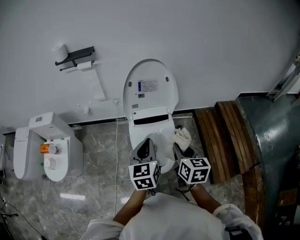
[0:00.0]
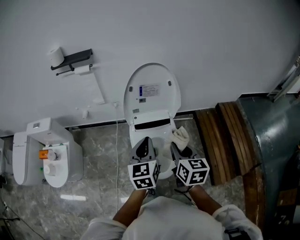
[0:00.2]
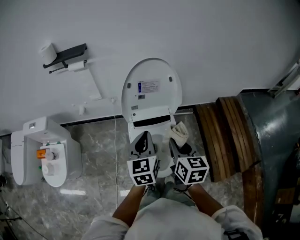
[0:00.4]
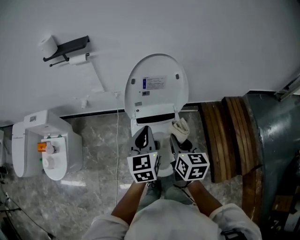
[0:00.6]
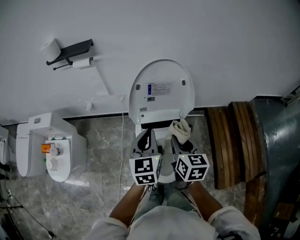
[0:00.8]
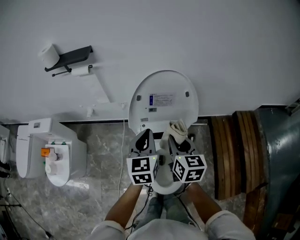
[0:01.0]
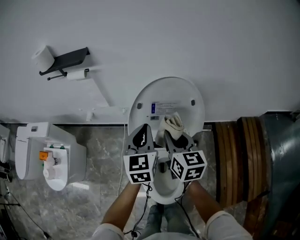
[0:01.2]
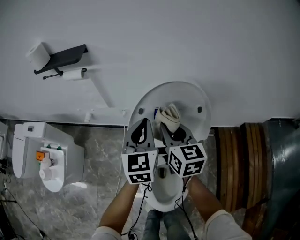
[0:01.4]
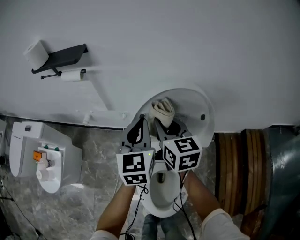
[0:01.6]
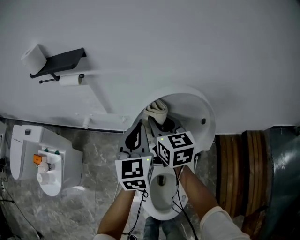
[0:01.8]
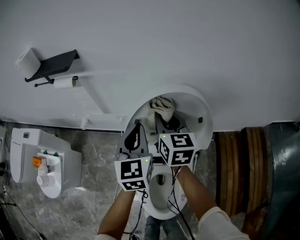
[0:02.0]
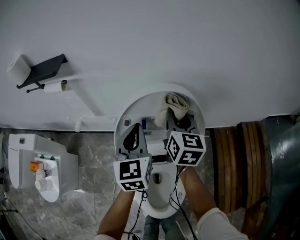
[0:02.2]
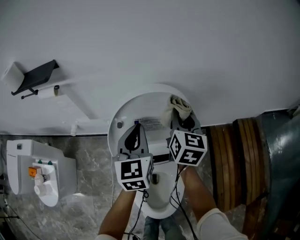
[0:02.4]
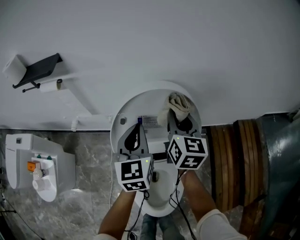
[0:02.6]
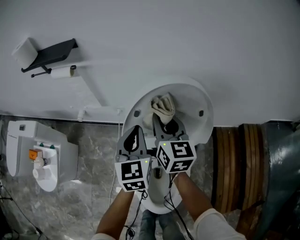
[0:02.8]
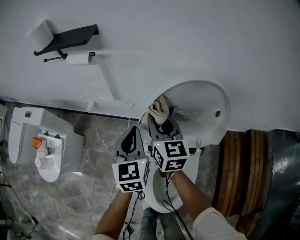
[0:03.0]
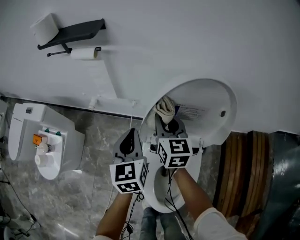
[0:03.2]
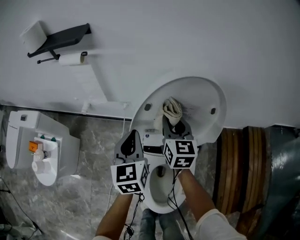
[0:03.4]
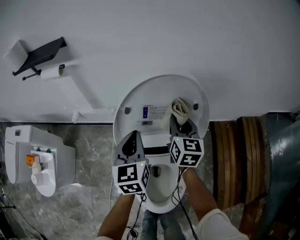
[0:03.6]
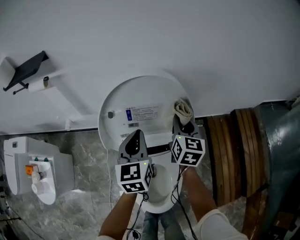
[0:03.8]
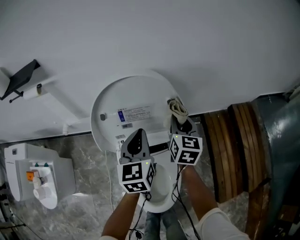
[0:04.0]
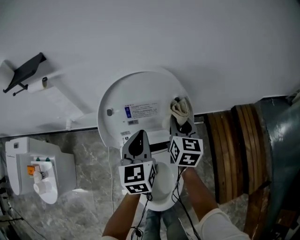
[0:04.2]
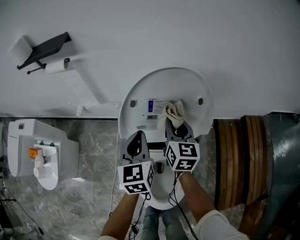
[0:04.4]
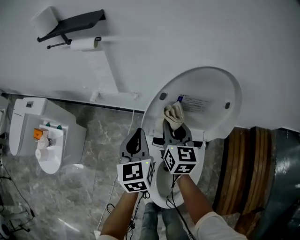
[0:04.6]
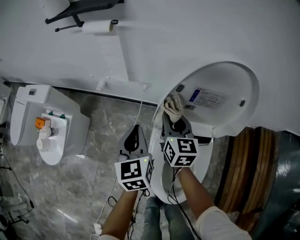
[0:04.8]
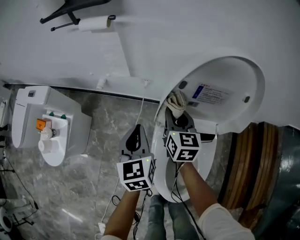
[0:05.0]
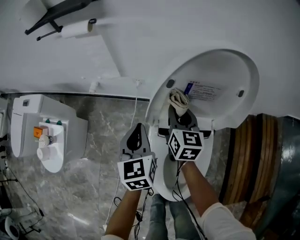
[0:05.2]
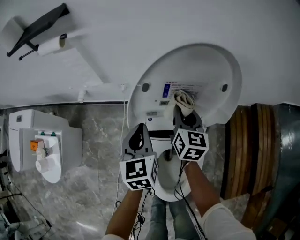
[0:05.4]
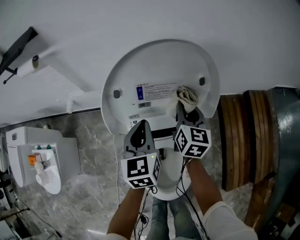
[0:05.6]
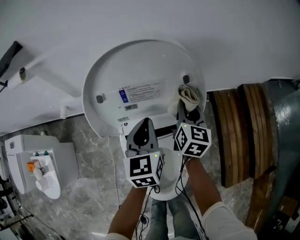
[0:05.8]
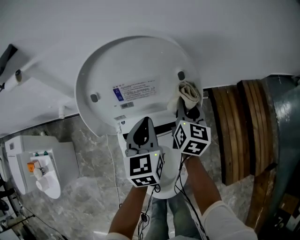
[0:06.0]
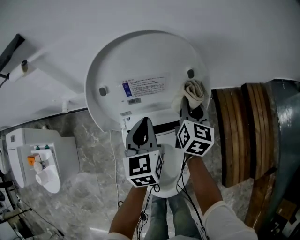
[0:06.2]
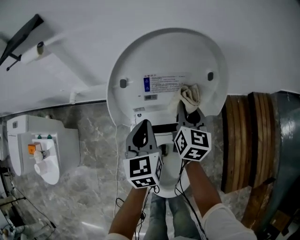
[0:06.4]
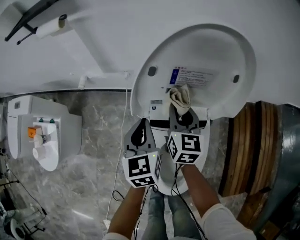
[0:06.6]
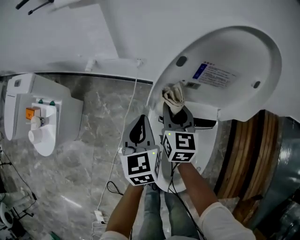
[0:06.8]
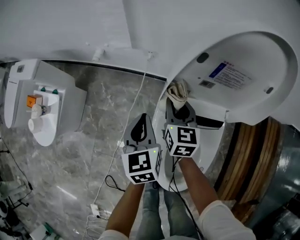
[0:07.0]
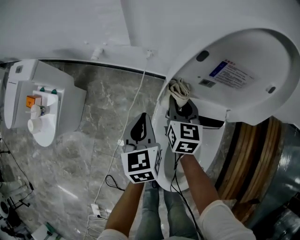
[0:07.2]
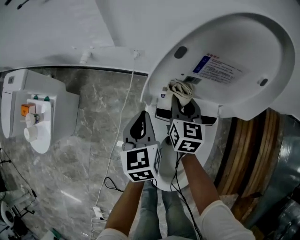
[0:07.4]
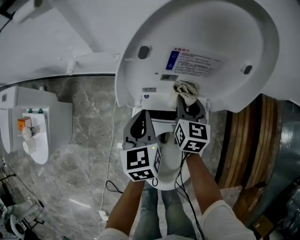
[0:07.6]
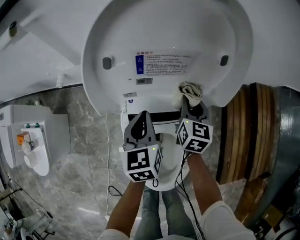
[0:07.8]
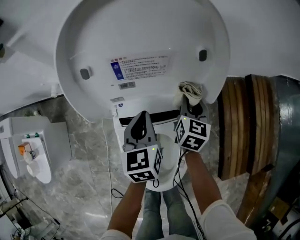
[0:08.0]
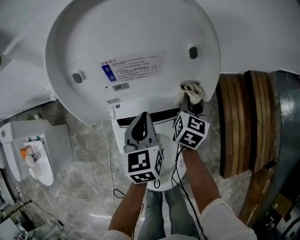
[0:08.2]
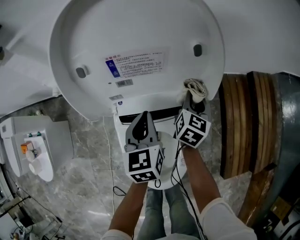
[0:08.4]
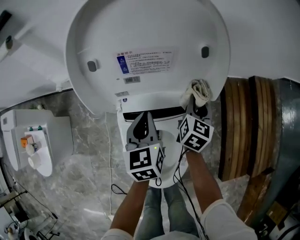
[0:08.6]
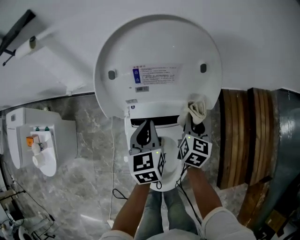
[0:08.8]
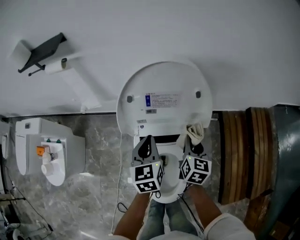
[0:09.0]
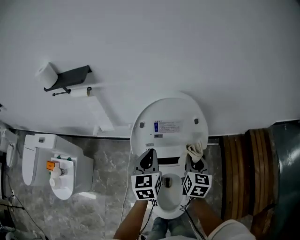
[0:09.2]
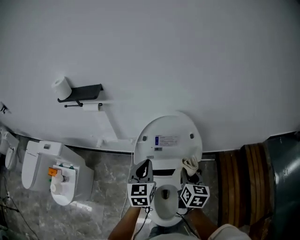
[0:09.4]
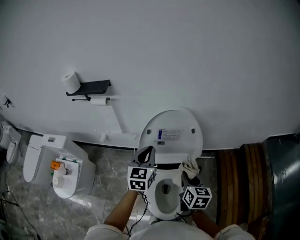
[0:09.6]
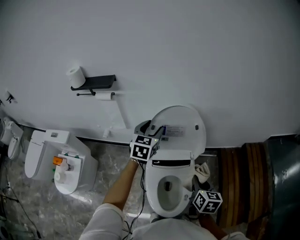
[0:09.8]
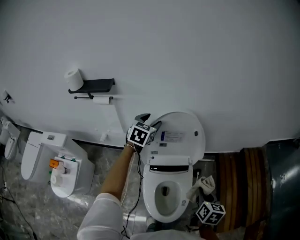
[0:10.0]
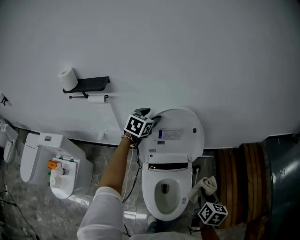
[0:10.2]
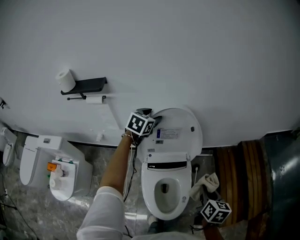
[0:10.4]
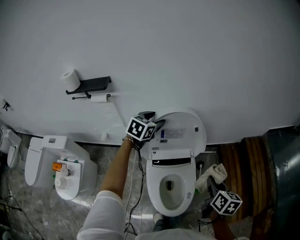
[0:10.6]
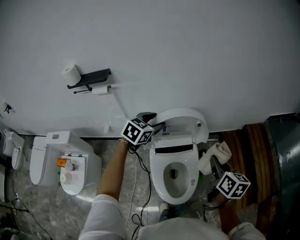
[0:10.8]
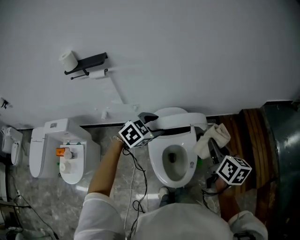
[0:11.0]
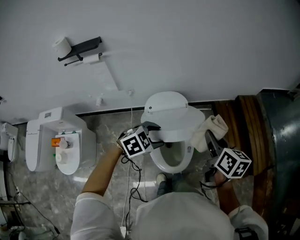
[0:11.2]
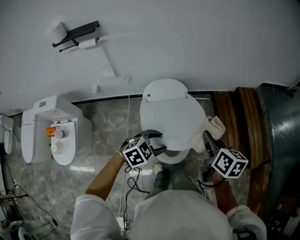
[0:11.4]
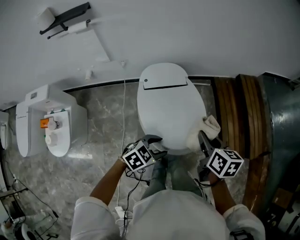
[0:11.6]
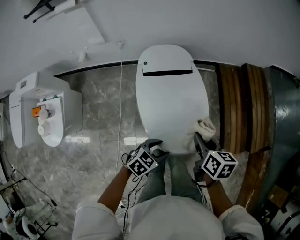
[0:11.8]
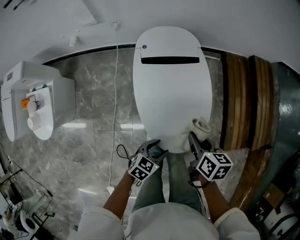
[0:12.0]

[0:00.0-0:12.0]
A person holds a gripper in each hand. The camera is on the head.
0:00.0 to 0:01.6: The two grippers go roughly 40 cm forward. The right gripper rotates approximately 20 degrees.
0:01.6 to 0:03.0: The right gripper moves roughly 15 cm to the right and comes back. Meanwhile the left gripper heads to the left and downward, covering about 10 cm.
0:03.0 to 0:04.4: The left gripper is displaced to the right by approximately 10 cm. The right gripper travels to the right by roughly 15 cm.
0:04.4 to 0:06.0: The left gripper changes place by some 10 cm. Meanwhile the right gripper ends up some 15 cm from where it was.
0:07.6 to 0:09.0: The left gripper heads upward and to the right, covering approximately 15 cm. Meanwhile the right gripper heads to the right, upward and backward, covering about 15 cm.
0:09.0 to 0:10.4: The left gripper moves upward and forward, some 20 cm, changes its angle by approximately 40 degrees, and opens. The right gripper shifts about 25 cm backward and upward.
0:10.4 to 0:12.0: The left gripper moves backward, downward and to the right, approximately 70 cm, and turns by about 30 degrees, while the right gripper heads downward and backward, covering approximately 25 cm, and turns by some 20 degrees.

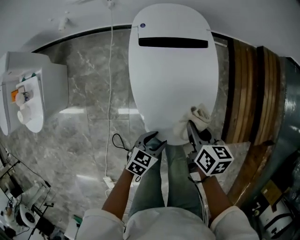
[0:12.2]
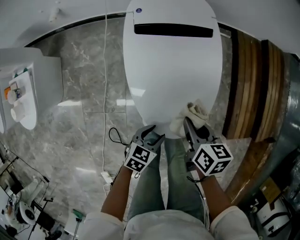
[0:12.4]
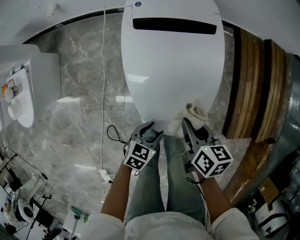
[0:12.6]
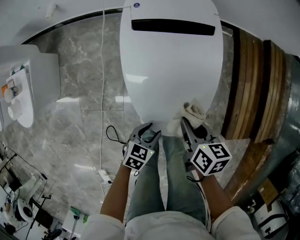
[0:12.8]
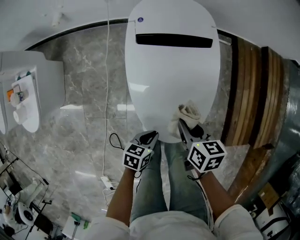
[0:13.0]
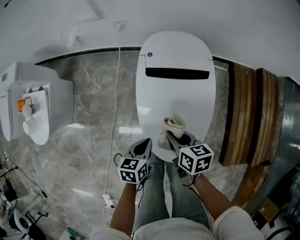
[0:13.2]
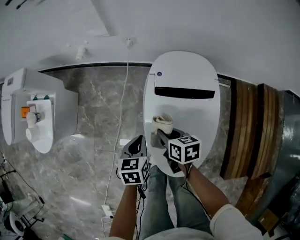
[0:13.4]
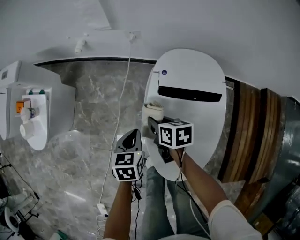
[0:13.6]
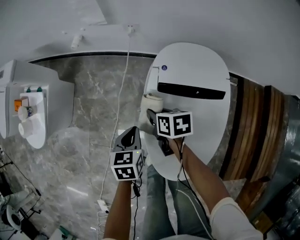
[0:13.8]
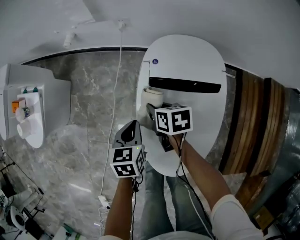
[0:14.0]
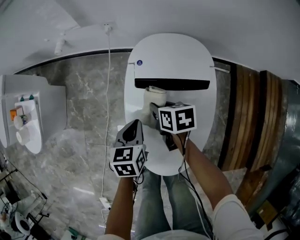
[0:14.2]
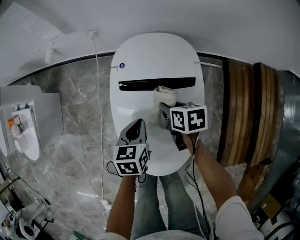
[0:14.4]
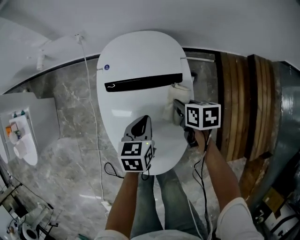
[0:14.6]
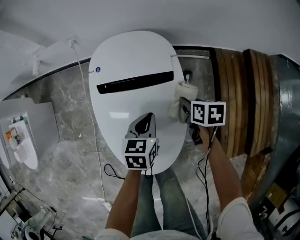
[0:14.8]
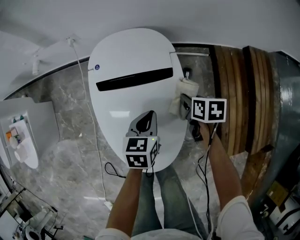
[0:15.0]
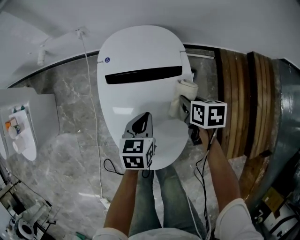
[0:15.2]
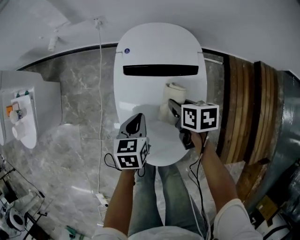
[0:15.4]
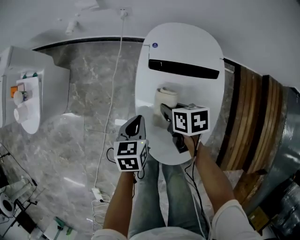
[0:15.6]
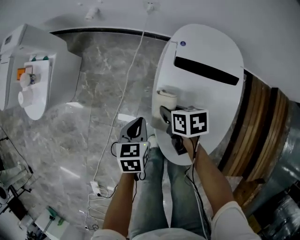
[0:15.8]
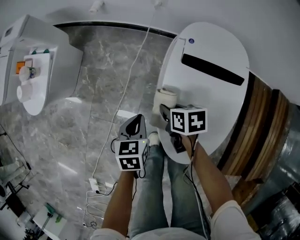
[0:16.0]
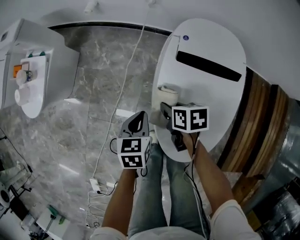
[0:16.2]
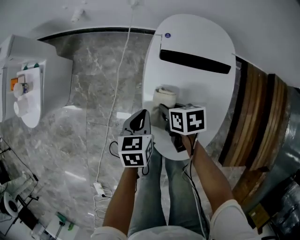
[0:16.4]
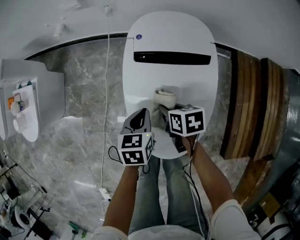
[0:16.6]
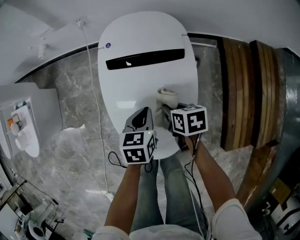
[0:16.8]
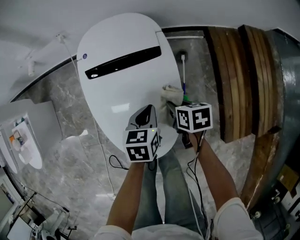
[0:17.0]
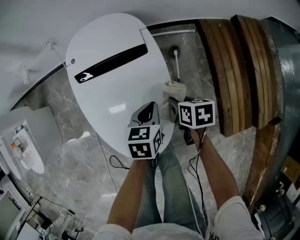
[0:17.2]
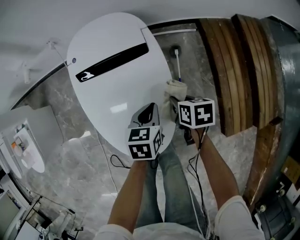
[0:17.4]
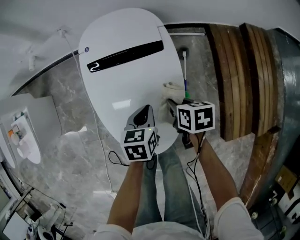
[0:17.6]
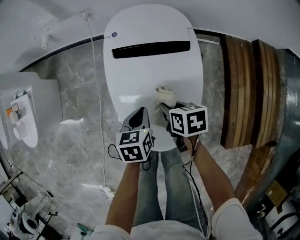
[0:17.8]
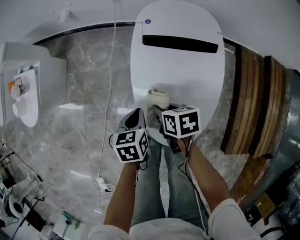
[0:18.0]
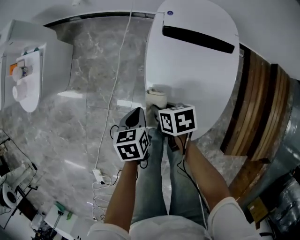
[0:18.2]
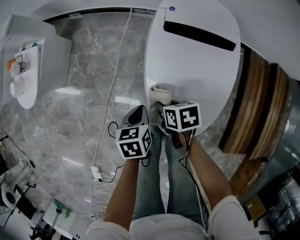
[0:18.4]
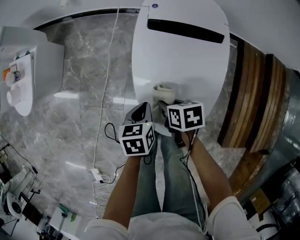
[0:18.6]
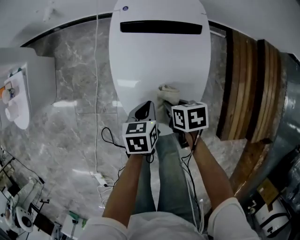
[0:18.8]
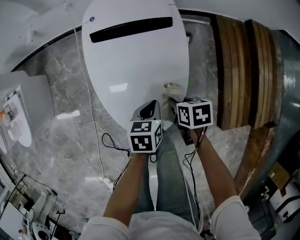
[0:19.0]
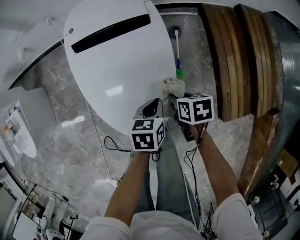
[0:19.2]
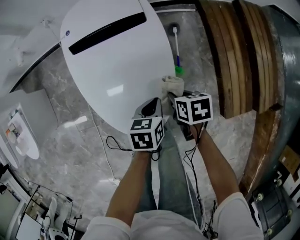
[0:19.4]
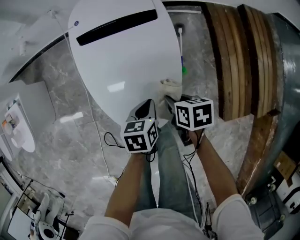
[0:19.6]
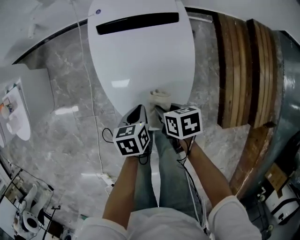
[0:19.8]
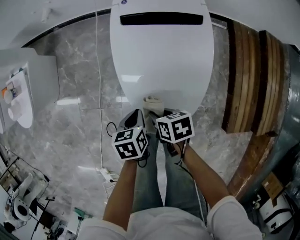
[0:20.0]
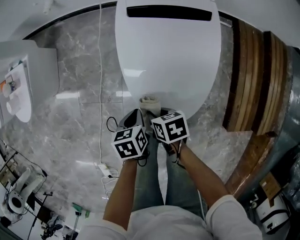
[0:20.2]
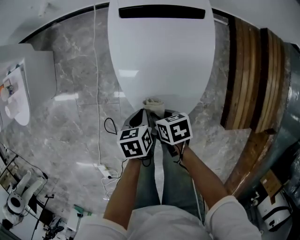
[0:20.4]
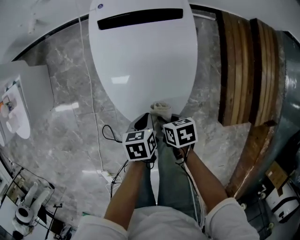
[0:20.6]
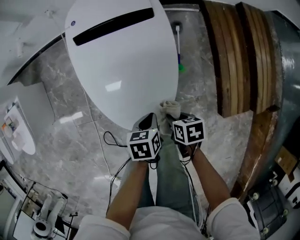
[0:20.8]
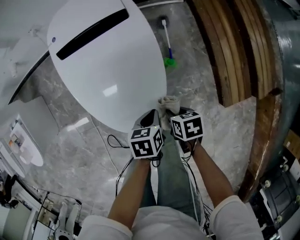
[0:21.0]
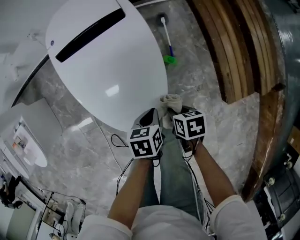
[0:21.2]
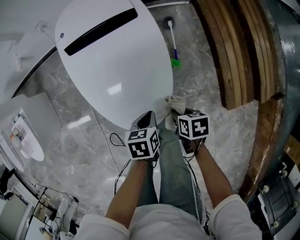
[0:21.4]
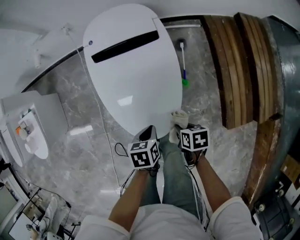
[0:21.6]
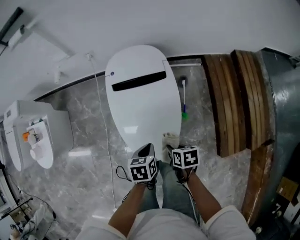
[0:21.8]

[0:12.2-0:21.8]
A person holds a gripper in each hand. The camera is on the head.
0:12.2 to 0:13.8: The left gripper goes up and down, approximately 10 cm each way, reversing 2 times, swivels about 40 degrees, and closes. Meanwhile the right gripper ends up approximately 30 cm from where it was, and rotates about 30 degrees.
0:15.4 to 0:17.0: The left gripper shifts by roughly 15 cm.
0:17.0 to 0:18.6: The right gripper shifts by roughly 20 cm, and swivels about 20 degrees. Meanwhile the left gripper ends up about 20 cm from where it was, and turns by about 20 degrees.
0:20.2 to 0:21.8: The right gripper ends up about 20 cm from where it was, and swivels approximately 20 degrees; the left gripper ends up about 20 cm from where it was.

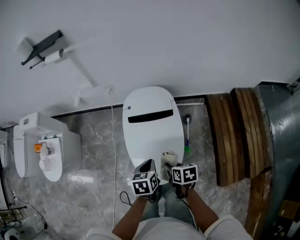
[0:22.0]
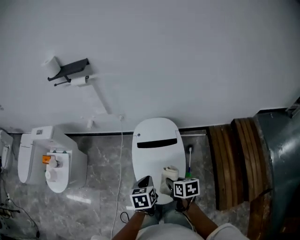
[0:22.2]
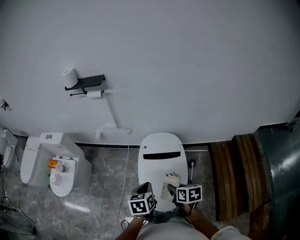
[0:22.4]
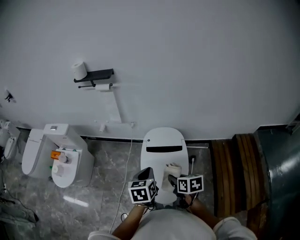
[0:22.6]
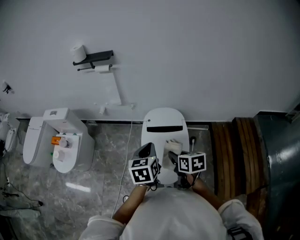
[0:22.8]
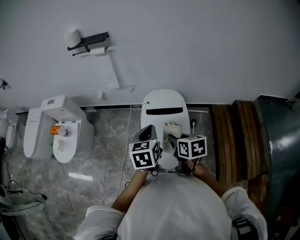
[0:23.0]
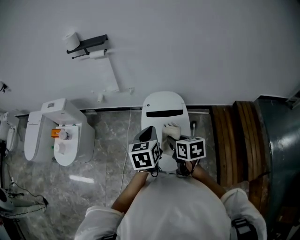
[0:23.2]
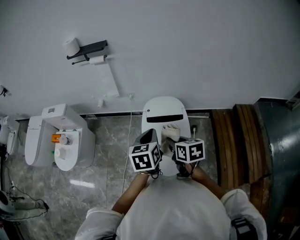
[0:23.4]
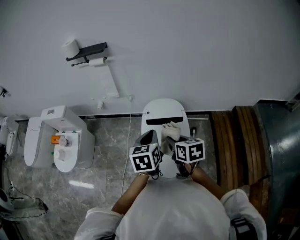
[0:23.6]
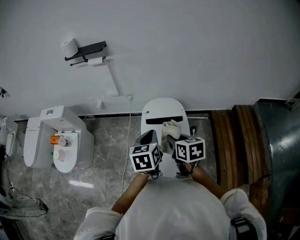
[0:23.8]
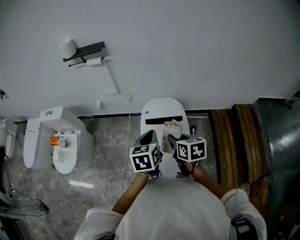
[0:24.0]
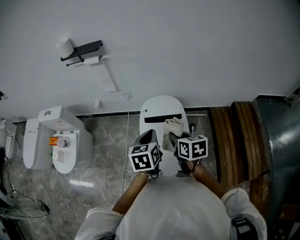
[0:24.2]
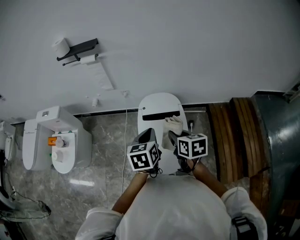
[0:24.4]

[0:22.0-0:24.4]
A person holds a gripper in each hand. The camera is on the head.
0:22.0 to 0:23.2: Both grippers travel together upward, some 25 cm. The right gripper rotates some 20 degrees. Meanwhile the left gripper turns by roughly 20 degrees.
0:23.2 to 0:24.4: The right gripper ends up some 5 cm from where it was.
